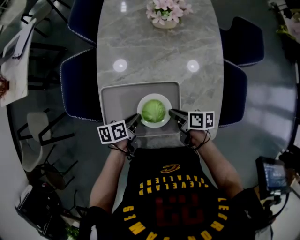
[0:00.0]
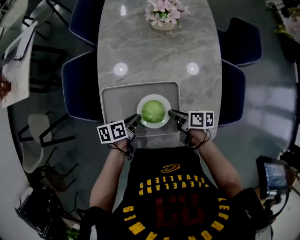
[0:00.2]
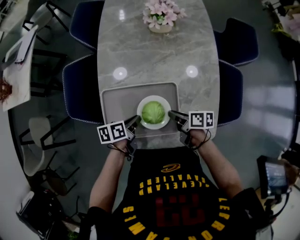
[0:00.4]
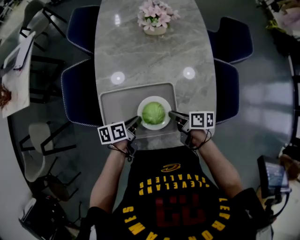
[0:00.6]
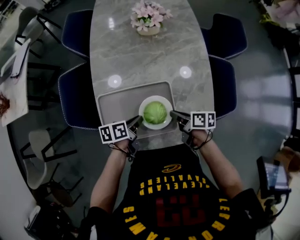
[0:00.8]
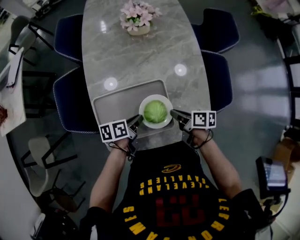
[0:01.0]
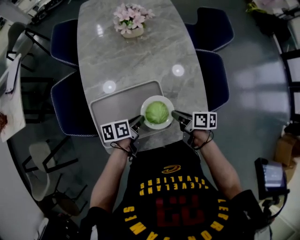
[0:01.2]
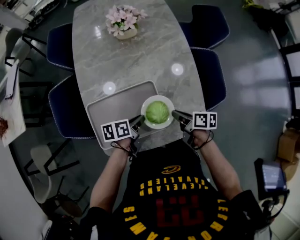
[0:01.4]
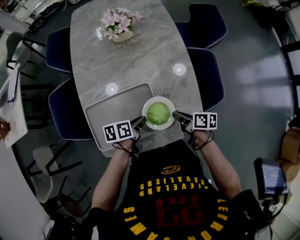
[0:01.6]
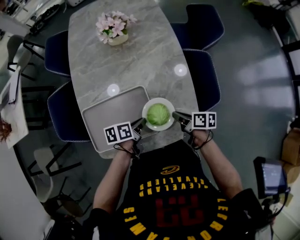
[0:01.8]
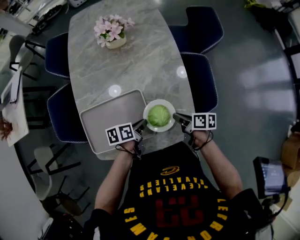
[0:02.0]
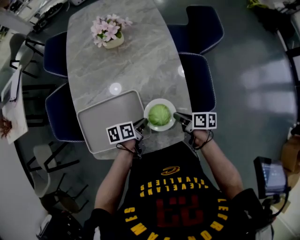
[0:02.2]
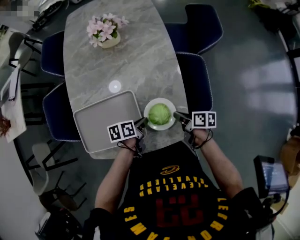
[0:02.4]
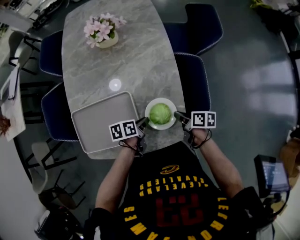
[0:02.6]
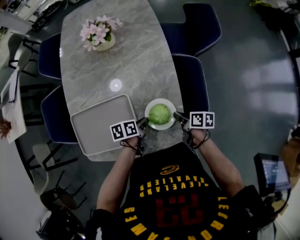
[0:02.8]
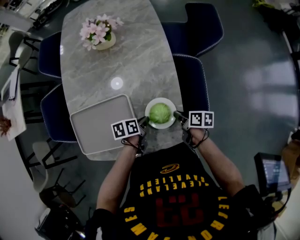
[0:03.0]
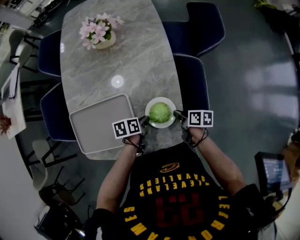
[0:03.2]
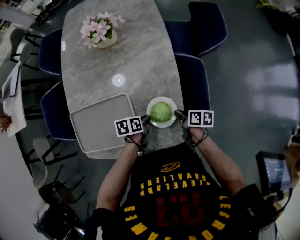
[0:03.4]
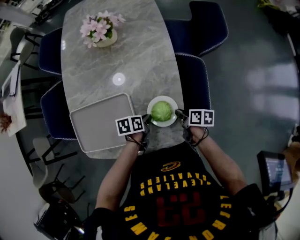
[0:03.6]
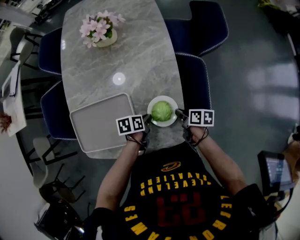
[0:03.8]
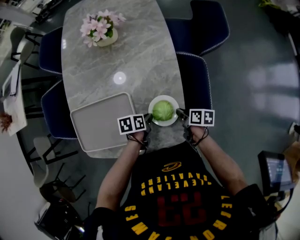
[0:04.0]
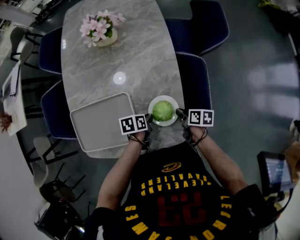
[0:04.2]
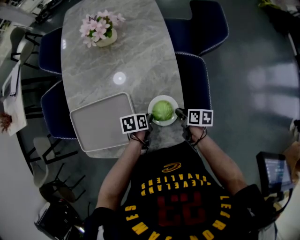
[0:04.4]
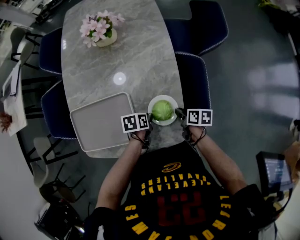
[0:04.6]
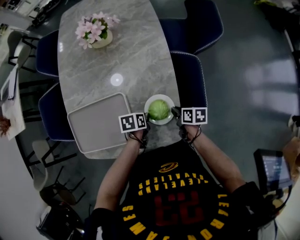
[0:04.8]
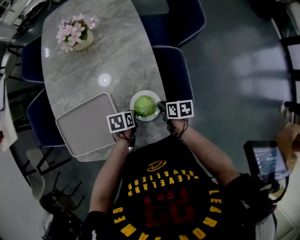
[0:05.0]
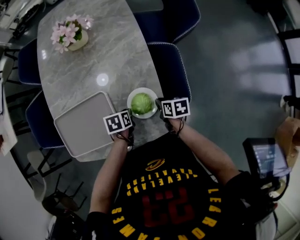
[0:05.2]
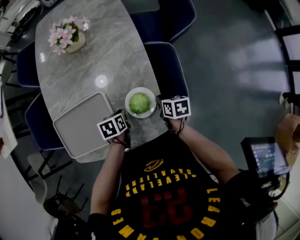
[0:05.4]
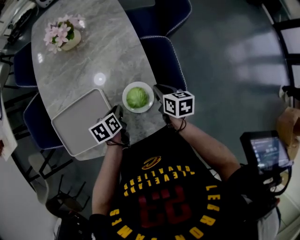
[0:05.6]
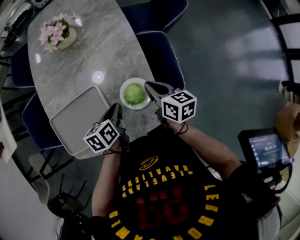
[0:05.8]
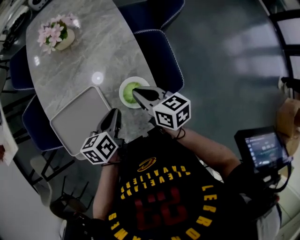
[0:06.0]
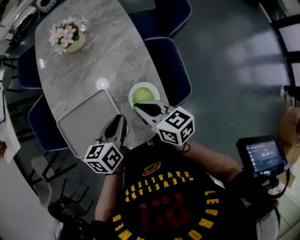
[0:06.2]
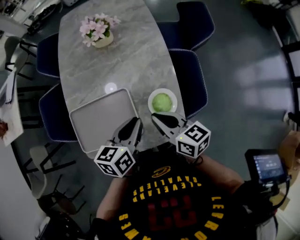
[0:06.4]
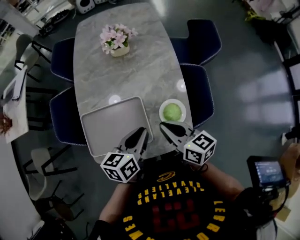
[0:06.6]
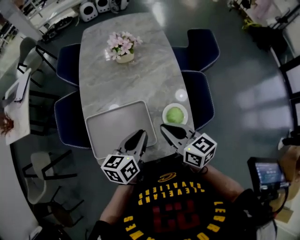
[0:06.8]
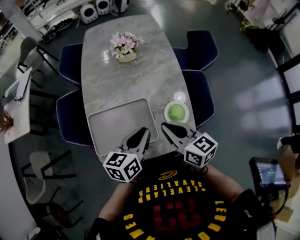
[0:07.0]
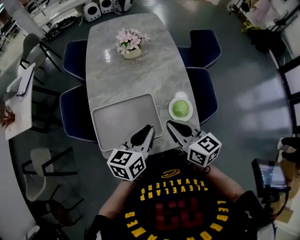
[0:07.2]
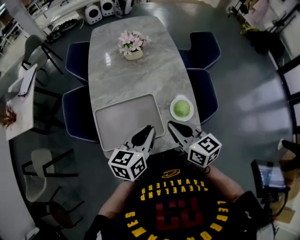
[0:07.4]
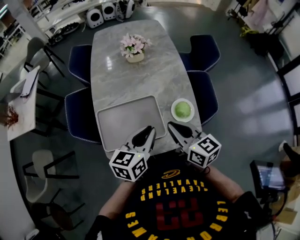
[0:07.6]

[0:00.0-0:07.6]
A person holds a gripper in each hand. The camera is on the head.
0:00.0 to 0:01.6: Both grippers travel together to the right, approximately 10 cm.
0:01.6 to 0:03.0: The two grippers go approximately 15 cm to the right.
0:03.0 to 0:04.6: There are only small adjustments of the grippers.
0:04.6 to 0:06.0: The two grippers go some 15 cm upward. The right gripper swivels approximately 40 degrees, while the left gripper changes its angle by roughly 30 degrees.
0:06.0 to 0:07.6: The right gripper heads to the left, upward and backward, covering roughly 25 cm, while the left gripper shifts some 20 cm upward, to the left and backward, and rotates about 30 degrees.

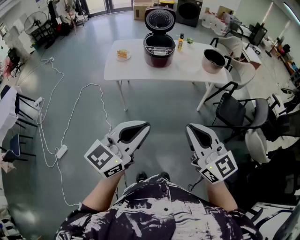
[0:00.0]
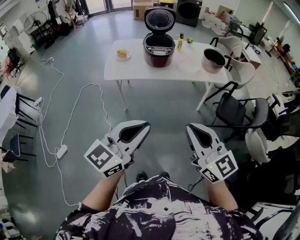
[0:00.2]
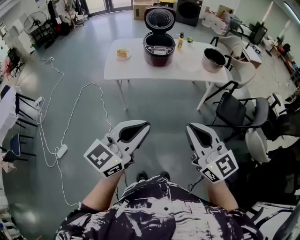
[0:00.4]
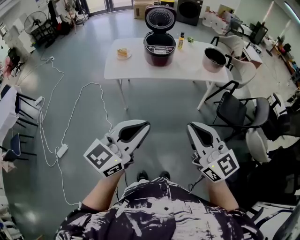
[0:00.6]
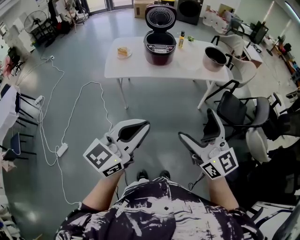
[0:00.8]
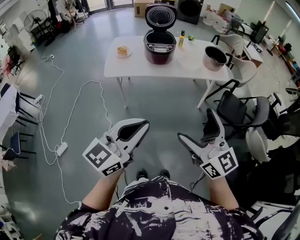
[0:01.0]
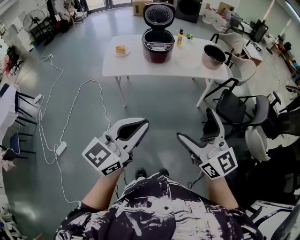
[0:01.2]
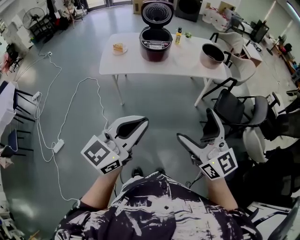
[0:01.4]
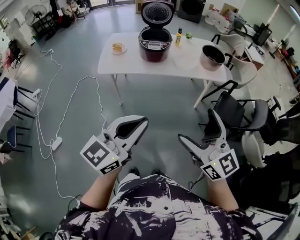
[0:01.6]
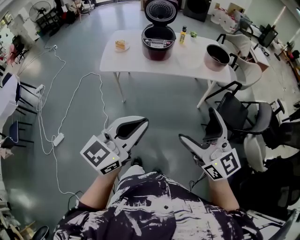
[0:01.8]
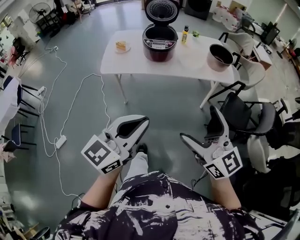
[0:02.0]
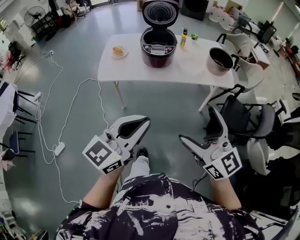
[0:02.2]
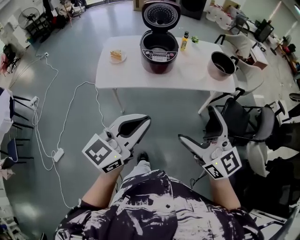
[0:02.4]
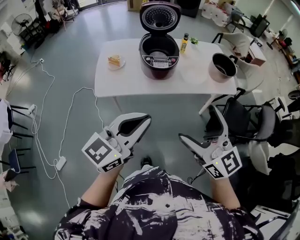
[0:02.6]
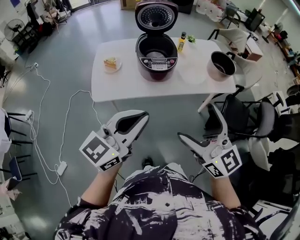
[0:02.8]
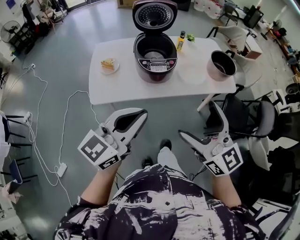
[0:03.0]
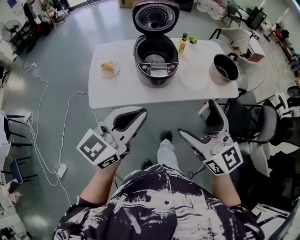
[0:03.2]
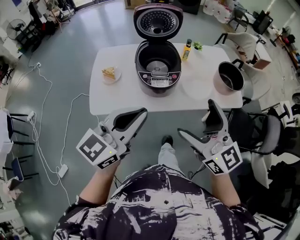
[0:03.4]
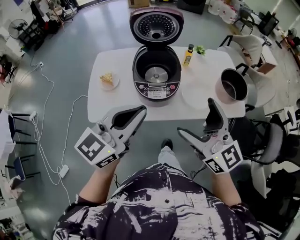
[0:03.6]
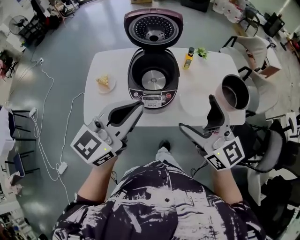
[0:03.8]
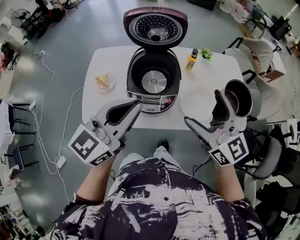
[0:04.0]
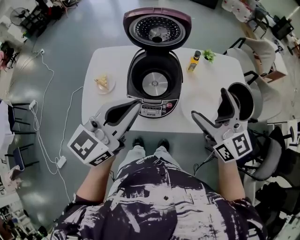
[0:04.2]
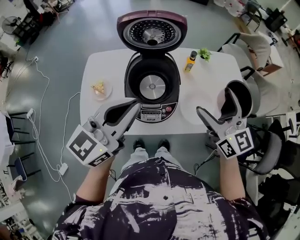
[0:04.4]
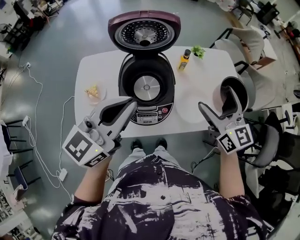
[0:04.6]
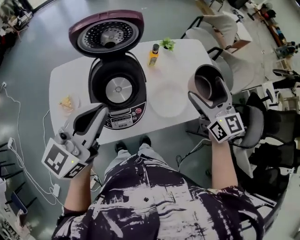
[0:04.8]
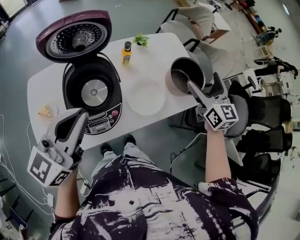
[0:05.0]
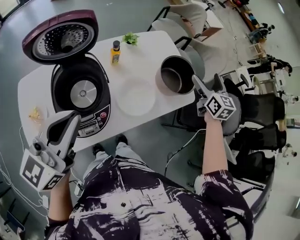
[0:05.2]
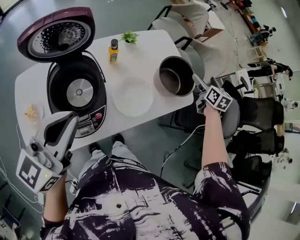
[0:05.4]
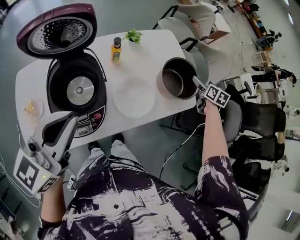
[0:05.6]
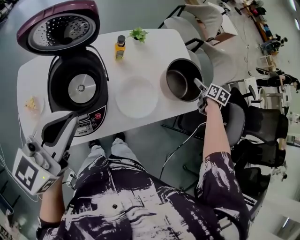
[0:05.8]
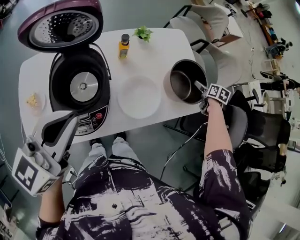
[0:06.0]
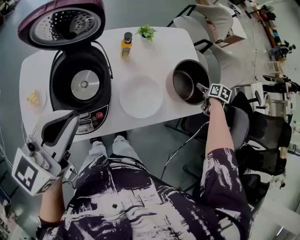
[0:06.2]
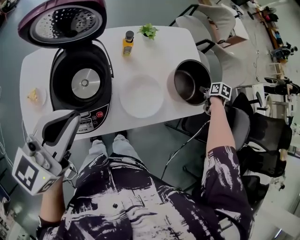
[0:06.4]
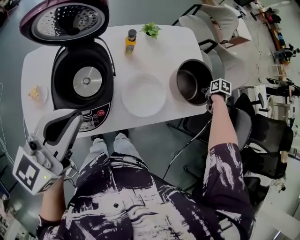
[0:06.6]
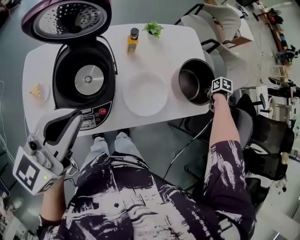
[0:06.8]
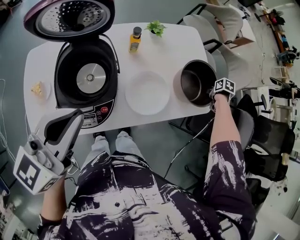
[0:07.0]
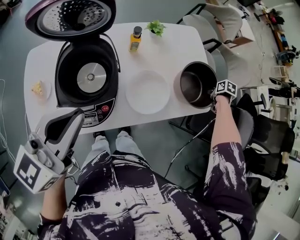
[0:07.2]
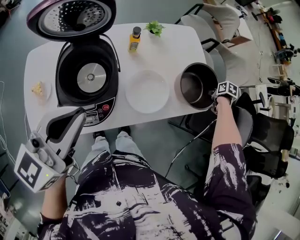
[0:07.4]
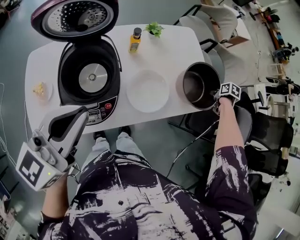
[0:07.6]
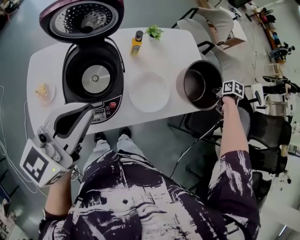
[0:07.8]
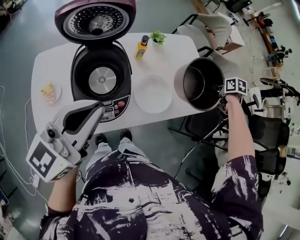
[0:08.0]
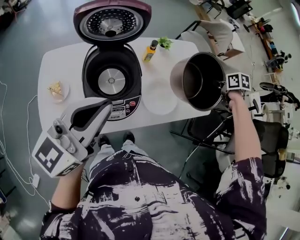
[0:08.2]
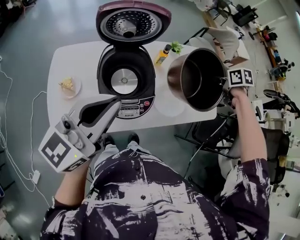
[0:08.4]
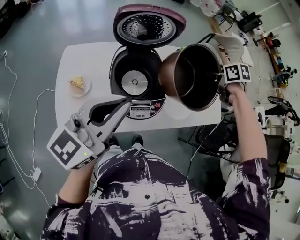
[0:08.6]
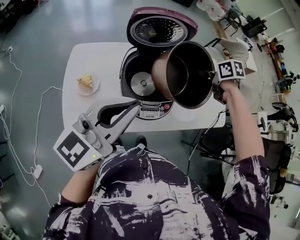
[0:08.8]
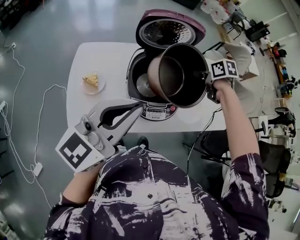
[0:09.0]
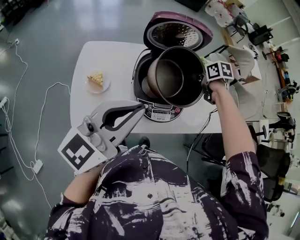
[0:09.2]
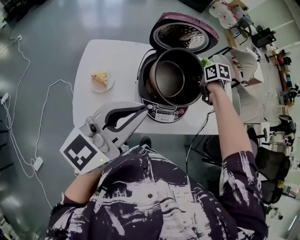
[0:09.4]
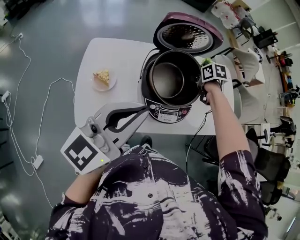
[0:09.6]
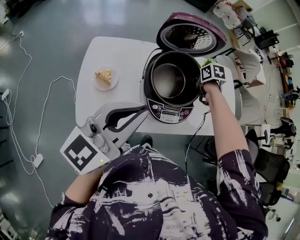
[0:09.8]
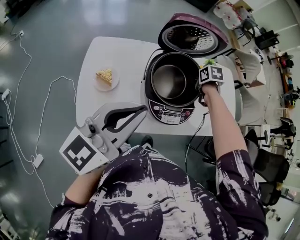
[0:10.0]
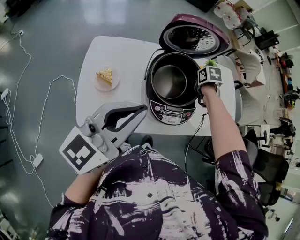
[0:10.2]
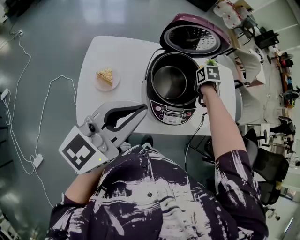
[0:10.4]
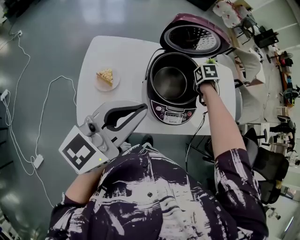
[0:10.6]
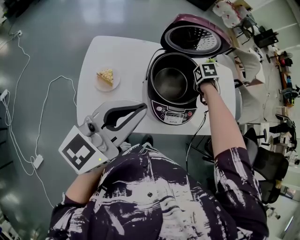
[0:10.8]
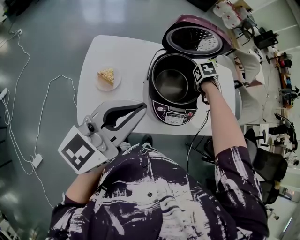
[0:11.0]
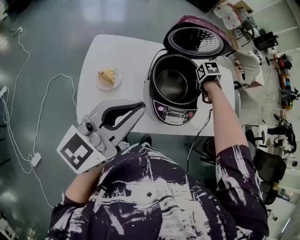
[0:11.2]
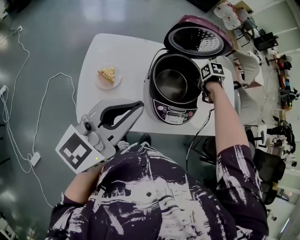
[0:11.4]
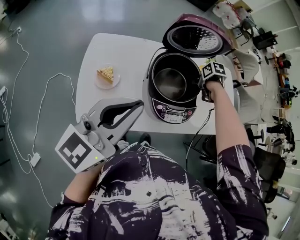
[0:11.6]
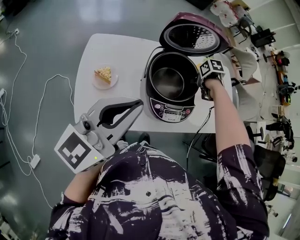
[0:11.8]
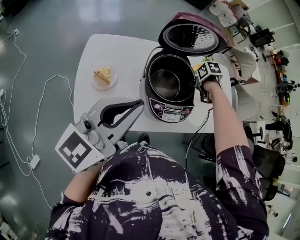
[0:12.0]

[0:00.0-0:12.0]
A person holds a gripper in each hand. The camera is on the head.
0:00.0 to 0:01.6: The grippers both shift to the right by roughly 5 cm. The right gripper opens its fingers.
0:01.6 to 0:03.0: The two grippers go about 30 cm forward and to the left.
0:03.0 to 0:04.4: The two grippers go approximately 35 cm forward.
0:04.4 to 0:06.0: The left gripper changes place by some 10 cm. Meanwhile the right gripper shifts by about 50 cm, and points its fingers roughly 50 degrees further downward.
0:06.0 to 0:07.6: The right gripper ends up approximately 5 cm from where it was, swivels some 20 degrees, and closes.
0:07.6 to 0:09.0: The left gripper ends up some 15 cm from where it was. The right gripper changes place by roughly 50 cm, and rotates about 40 degrees.
0:09.0 to 0:10.4: The right gripper is displaced downward by about 10 cm, and changes its angle by about 20 degrees; the left gripper changes place by roughly 5 cm.
0:10.4 to 0:12.0: The grippers make only small movements.

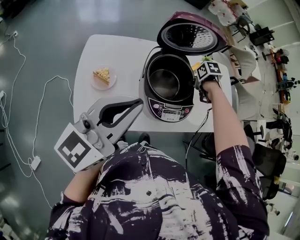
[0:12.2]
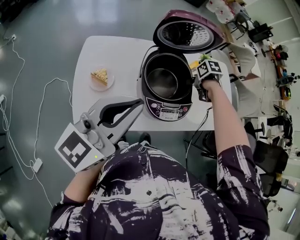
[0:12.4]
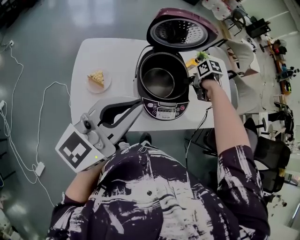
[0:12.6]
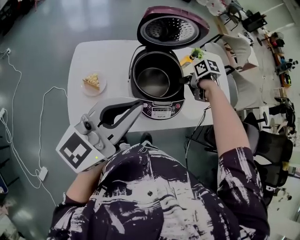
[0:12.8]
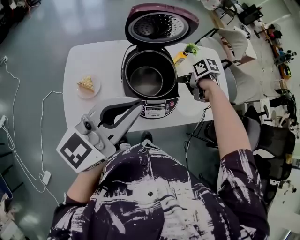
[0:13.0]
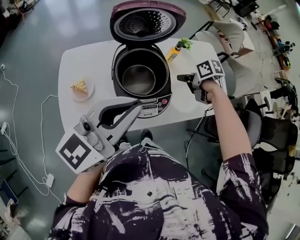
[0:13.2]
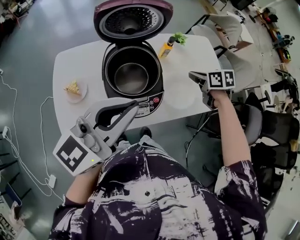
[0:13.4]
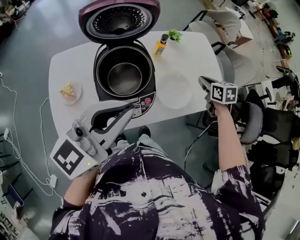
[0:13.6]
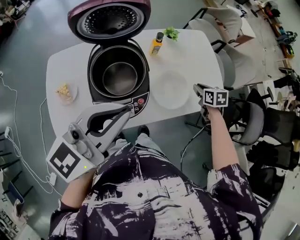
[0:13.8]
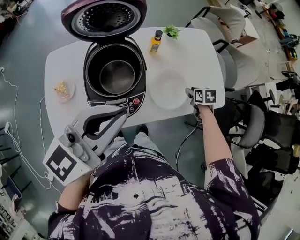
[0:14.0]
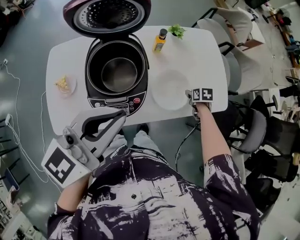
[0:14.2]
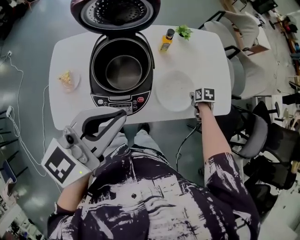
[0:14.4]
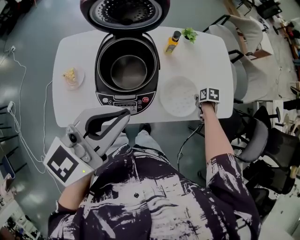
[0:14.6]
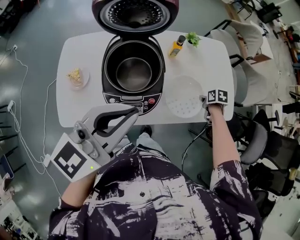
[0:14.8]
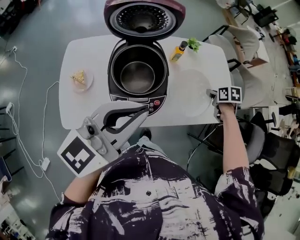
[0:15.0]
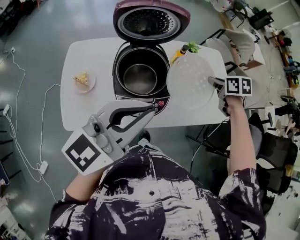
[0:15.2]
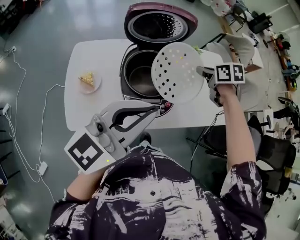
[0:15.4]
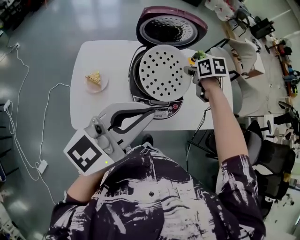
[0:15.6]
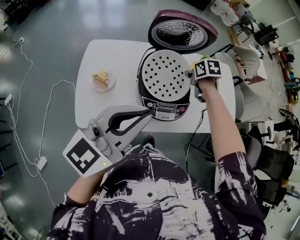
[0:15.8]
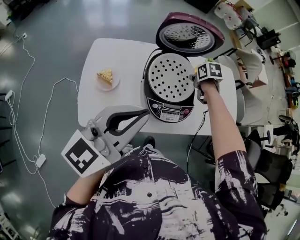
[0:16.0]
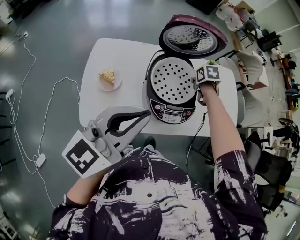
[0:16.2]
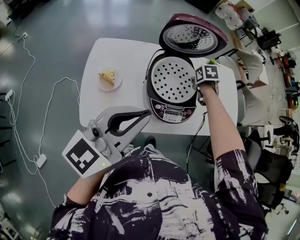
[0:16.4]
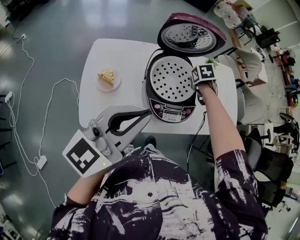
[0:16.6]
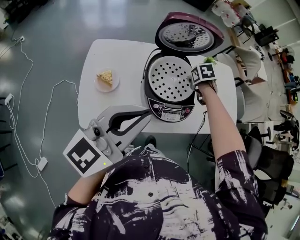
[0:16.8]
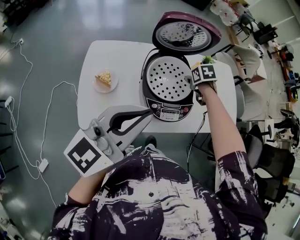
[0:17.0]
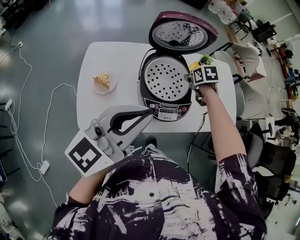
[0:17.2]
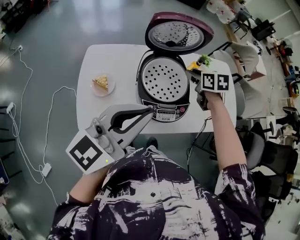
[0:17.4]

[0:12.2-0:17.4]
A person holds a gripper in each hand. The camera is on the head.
0:12.2 to 0:14.0: The right gripper shifts by about 30 cm, and rotates about 20 degrees, while the left gripper changes place by some 25 cm.
0:14.0 to 0:15.6: The right gripper goes up and down, approximately 30 cm each way, reversing 2 times; the left gripper shifts by about 15 cm.
0:15.6 to 0:17.4: The right gripper travels downward and back again, about 10 cm each way.
